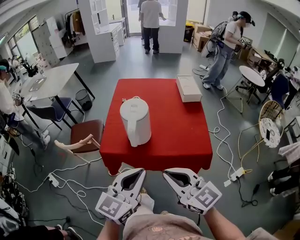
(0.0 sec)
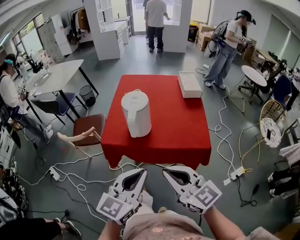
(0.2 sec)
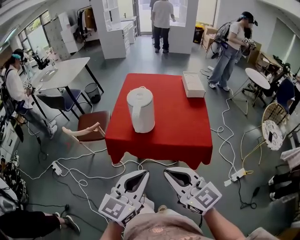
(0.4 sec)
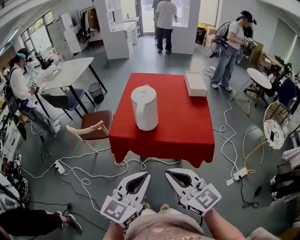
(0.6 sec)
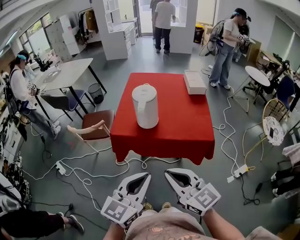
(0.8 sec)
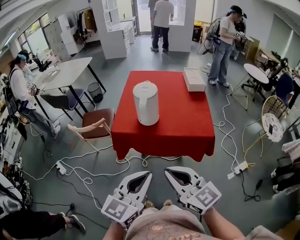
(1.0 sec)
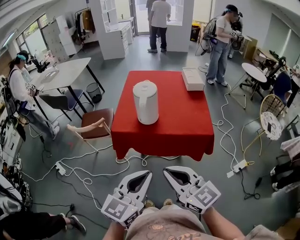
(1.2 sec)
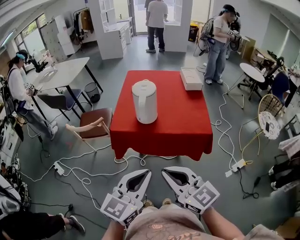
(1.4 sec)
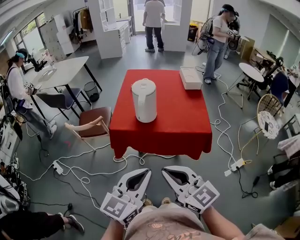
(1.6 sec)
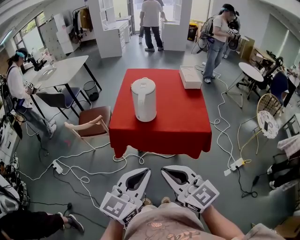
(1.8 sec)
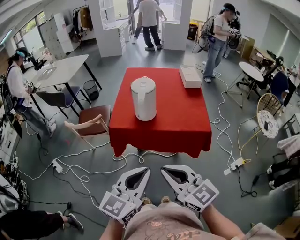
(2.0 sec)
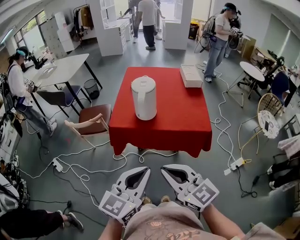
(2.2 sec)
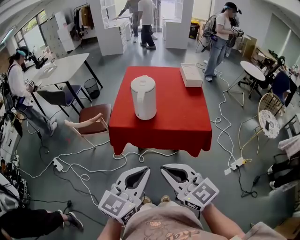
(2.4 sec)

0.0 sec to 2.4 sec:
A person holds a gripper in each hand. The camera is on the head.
0.0 sec to 1.2 sec: Both grippers travel together backward, approximately 15 cm.
1.2 sec to 2.4 sec: There are only small adjustments of the grippers.

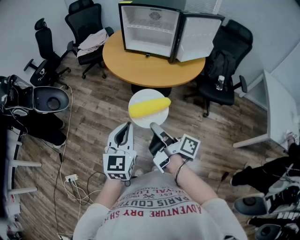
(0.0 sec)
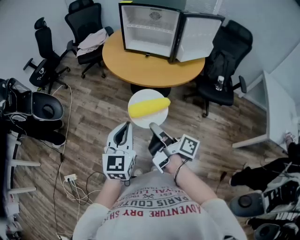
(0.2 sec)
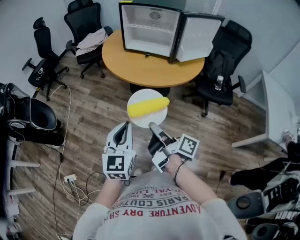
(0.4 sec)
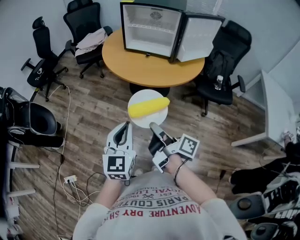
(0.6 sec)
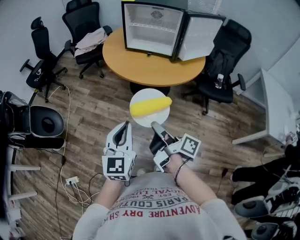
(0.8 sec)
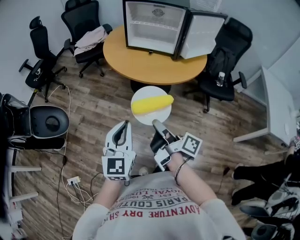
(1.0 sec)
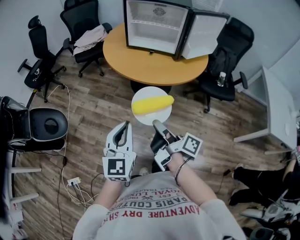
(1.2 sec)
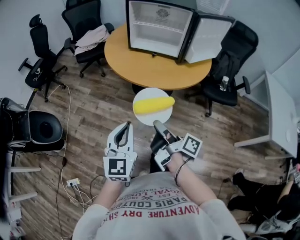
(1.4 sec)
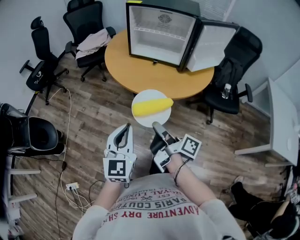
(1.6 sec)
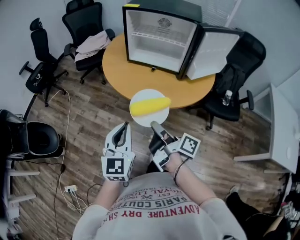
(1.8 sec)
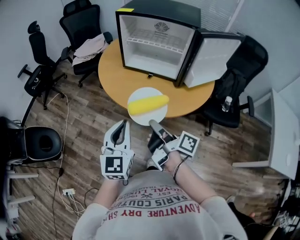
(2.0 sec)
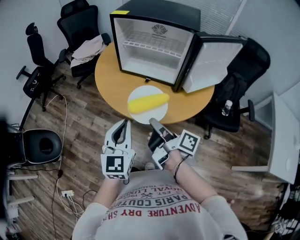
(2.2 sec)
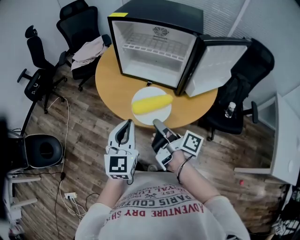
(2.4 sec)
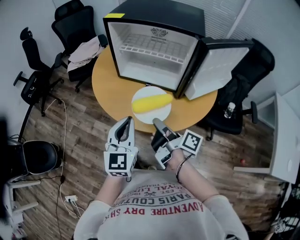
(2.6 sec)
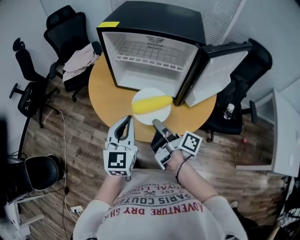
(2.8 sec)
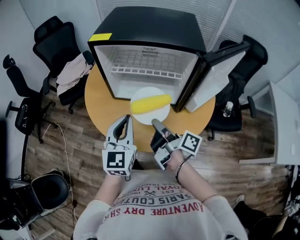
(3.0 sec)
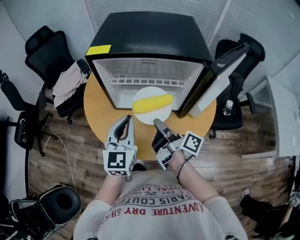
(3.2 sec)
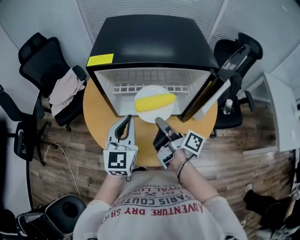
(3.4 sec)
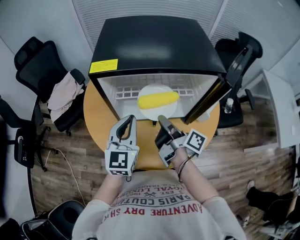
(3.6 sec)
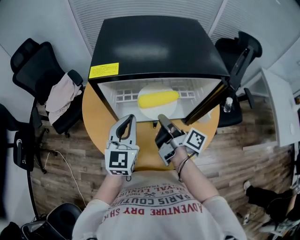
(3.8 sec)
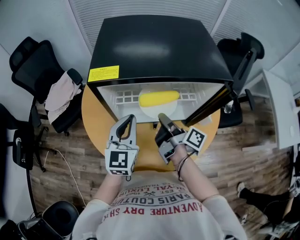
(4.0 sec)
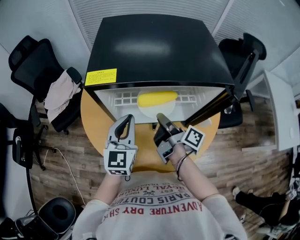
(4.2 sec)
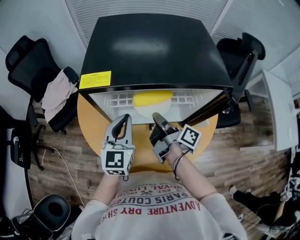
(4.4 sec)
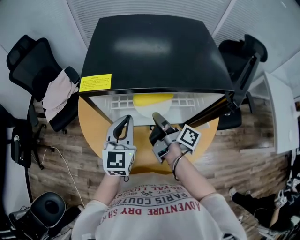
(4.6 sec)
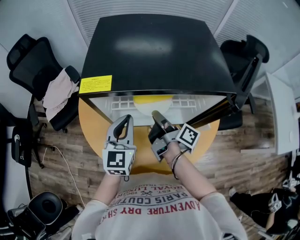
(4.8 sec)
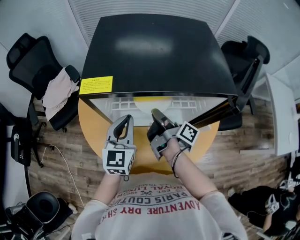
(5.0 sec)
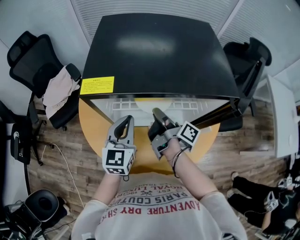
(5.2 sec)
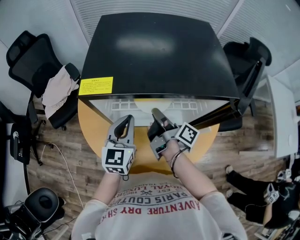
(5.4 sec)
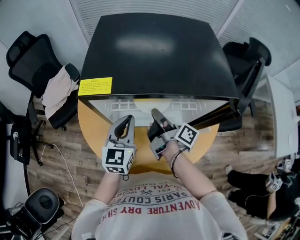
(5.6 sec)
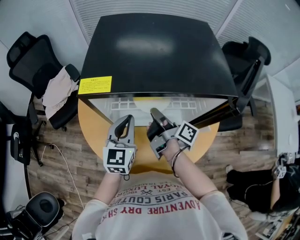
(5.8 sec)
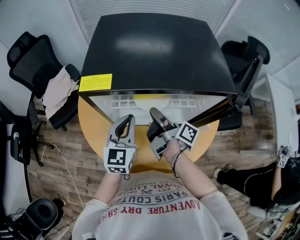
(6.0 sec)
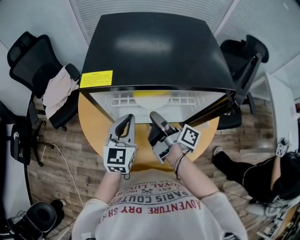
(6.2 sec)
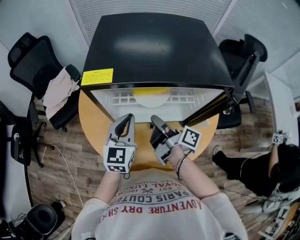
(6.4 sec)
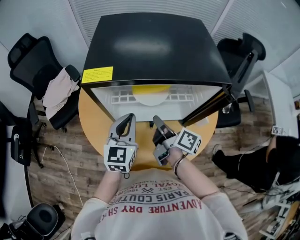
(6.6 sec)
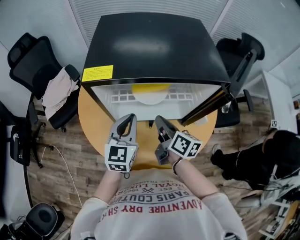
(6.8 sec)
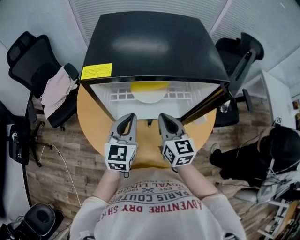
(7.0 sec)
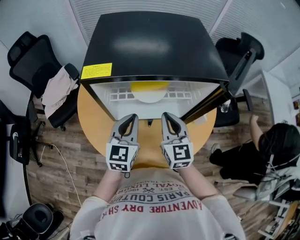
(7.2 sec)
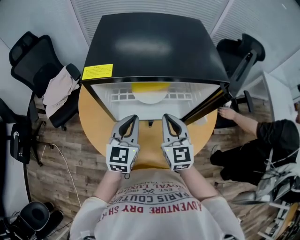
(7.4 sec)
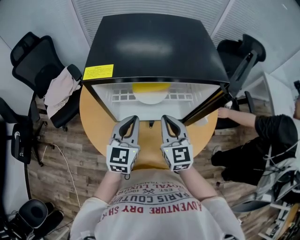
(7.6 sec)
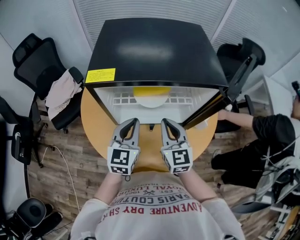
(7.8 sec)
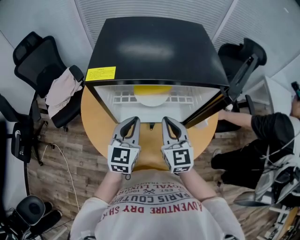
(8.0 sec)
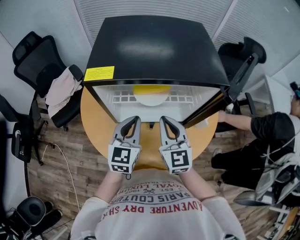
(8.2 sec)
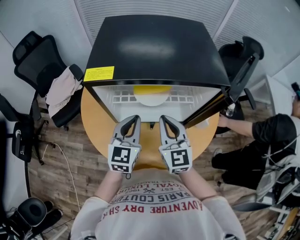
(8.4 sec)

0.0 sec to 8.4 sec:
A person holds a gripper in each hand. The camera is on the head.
0.0 sec to 1.4 sec: The left gripper ends up approximately 10 cm from where it was.
1.4 sec to 2.8 sec: The left gripper moves about 35 cm.
2.8 sec to 4.2 sec: The left gripper changes place by roughly 25 cm.

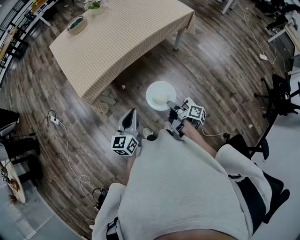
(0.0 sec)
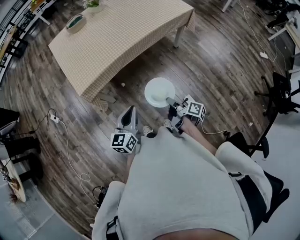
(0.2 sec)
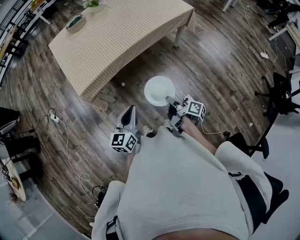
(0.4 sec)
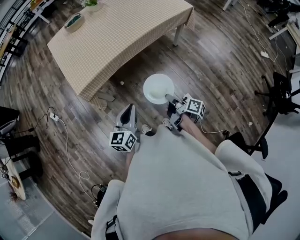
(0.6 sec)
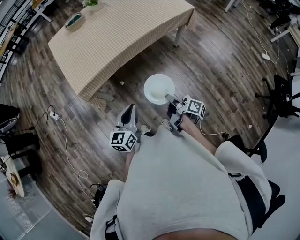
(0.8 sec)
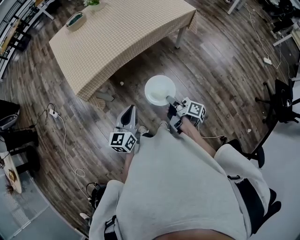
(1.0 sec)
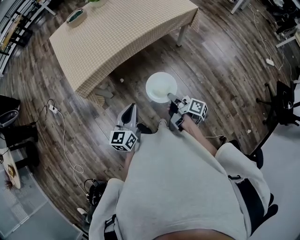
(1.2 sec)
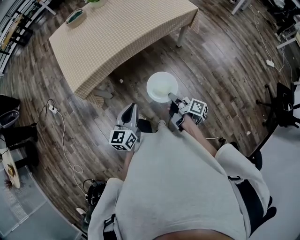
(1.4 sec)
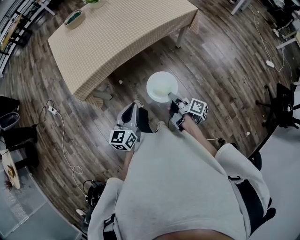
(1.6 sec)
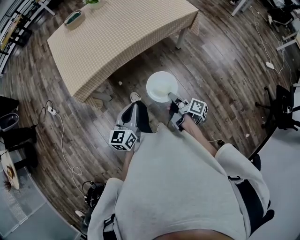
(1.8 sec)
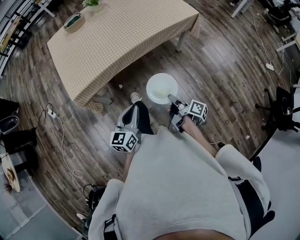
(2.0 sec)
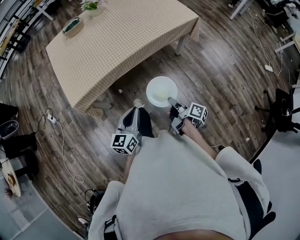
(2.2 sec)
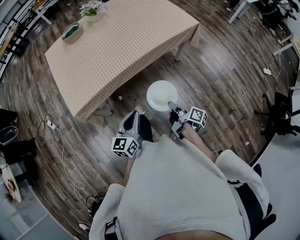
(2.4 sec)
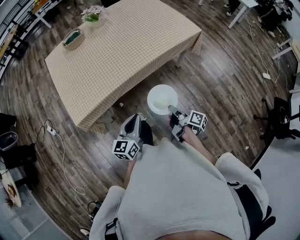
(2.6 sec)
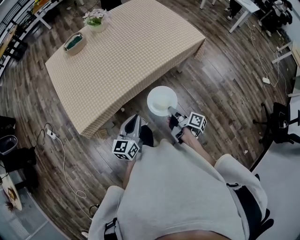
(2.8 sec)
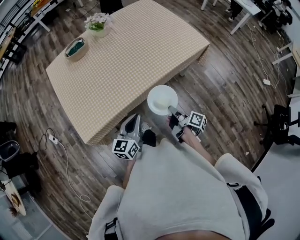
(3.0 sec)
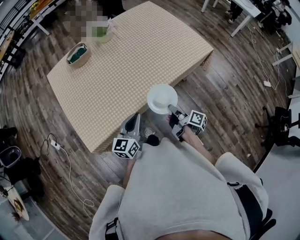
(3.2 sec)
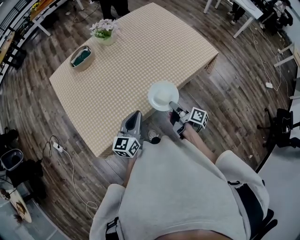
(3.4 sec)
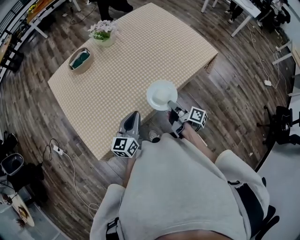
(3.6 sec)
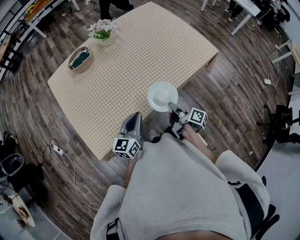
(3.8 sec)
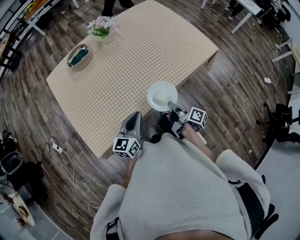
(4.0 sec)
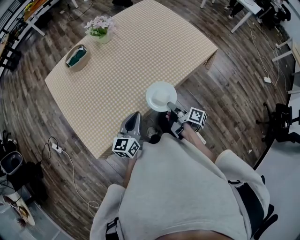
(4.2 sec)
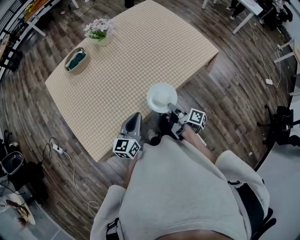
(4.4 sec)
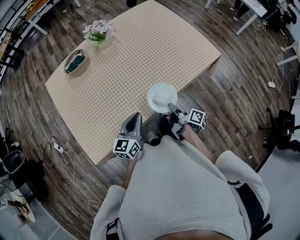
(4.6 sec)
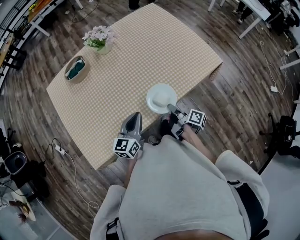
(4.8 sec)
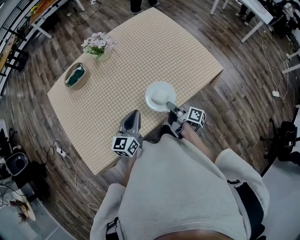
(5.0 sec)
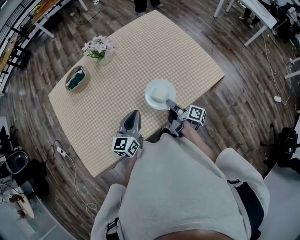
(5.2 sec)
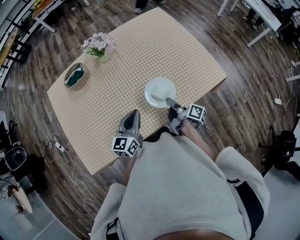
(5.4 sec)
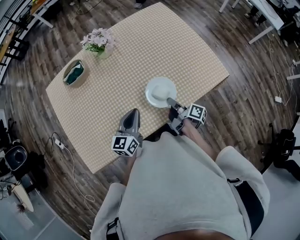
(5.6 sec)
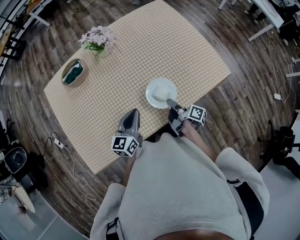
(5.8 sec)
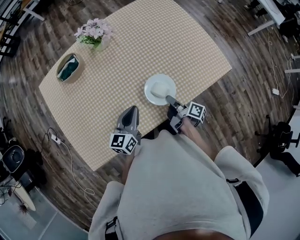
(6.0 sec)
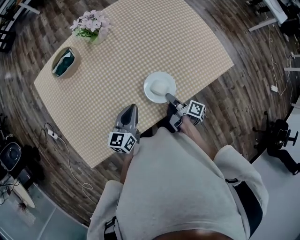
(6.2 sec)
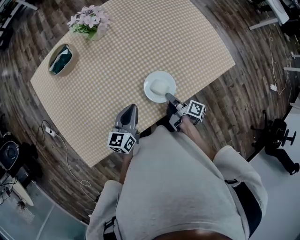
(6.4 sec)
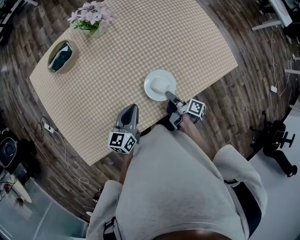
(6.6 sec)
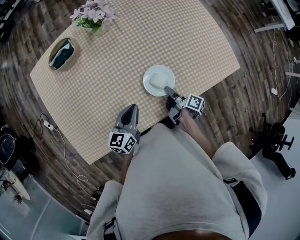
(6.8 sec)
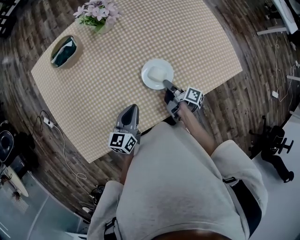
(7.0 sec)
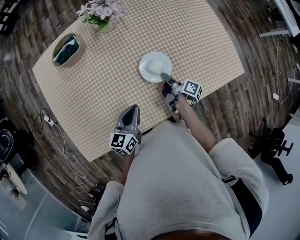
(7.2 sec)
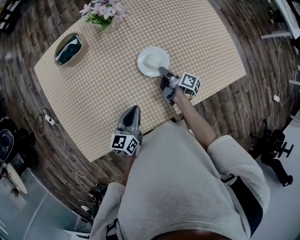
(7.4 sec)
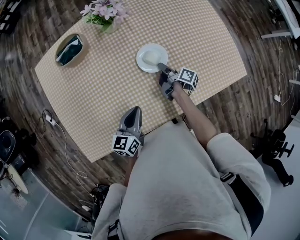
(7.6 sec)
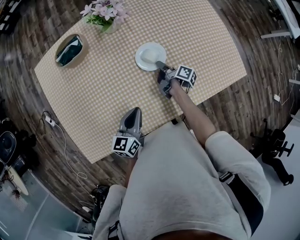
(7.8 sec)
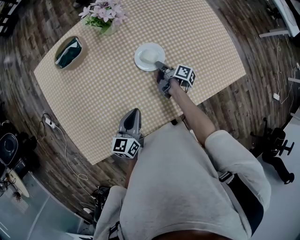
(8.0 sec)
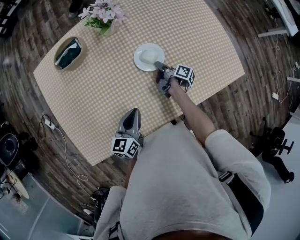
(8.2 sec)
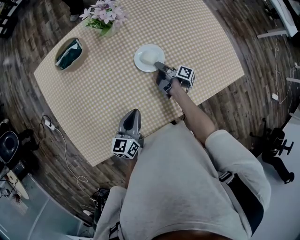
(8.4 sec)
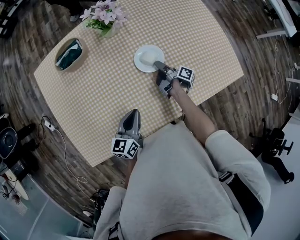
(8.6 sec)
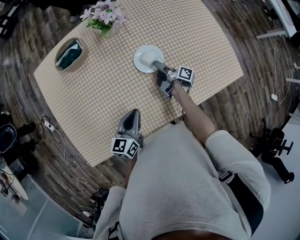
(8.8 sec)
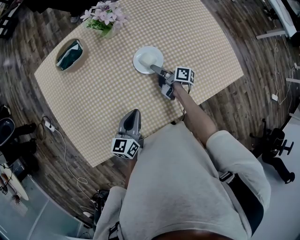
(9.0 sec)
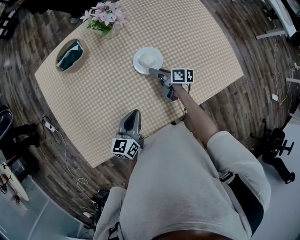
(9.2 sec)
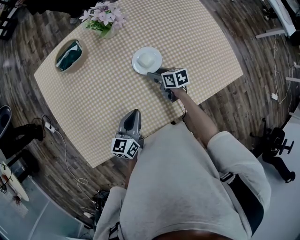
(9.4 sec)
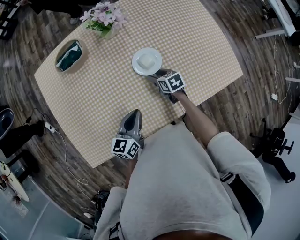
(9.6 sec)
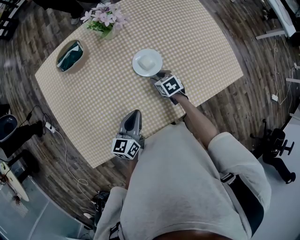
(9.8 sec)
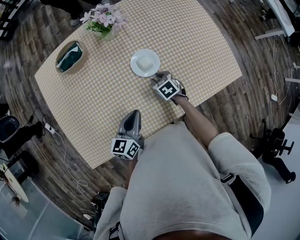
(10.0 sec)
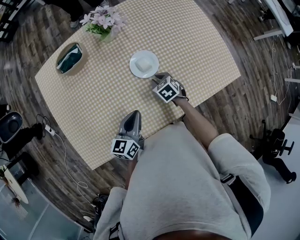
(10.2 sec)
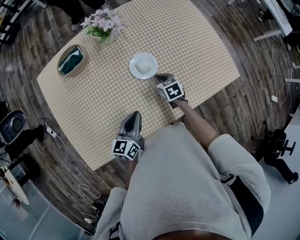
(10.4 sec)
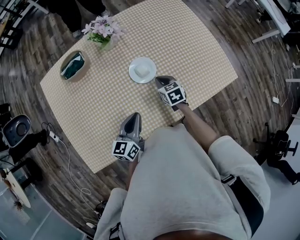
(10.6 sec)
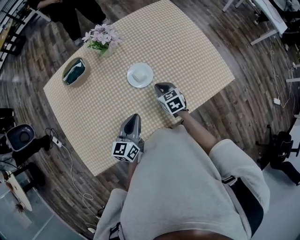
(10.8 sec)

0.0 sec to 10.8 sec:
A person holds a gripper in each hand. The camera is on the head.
0.0 sec to 1.6 sec: The left gripper shifts by about 10 cm.
1.6 sec to 3.0 sec: The left gripper ends up approximately 30 cm from where it was.
3.0 sec to 4.6 sec: The left gripper moves some 15 cm.
4.6 sec to 6.2 sec: The left gripper changes place by approximately 15 cm.
6.2 sec to 7.8 sec: The left gripper moves roughly 5 cm.
9.2 sec to 10.8 sec: The left gripper moves about 5 cm.

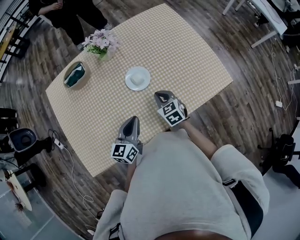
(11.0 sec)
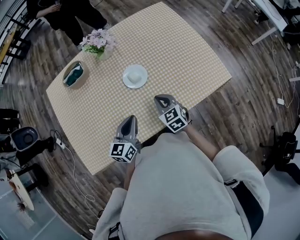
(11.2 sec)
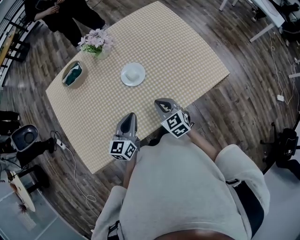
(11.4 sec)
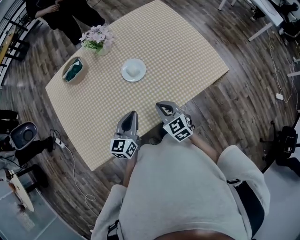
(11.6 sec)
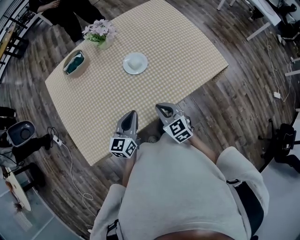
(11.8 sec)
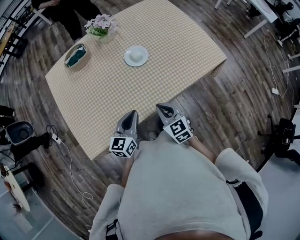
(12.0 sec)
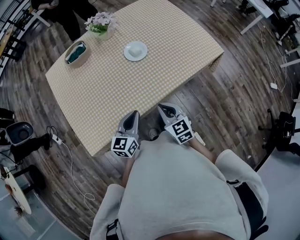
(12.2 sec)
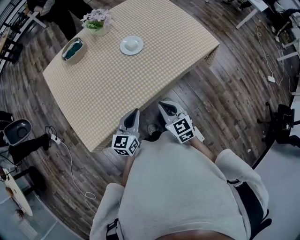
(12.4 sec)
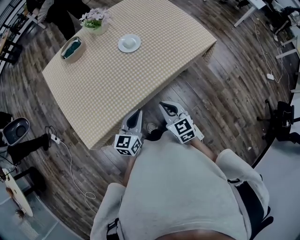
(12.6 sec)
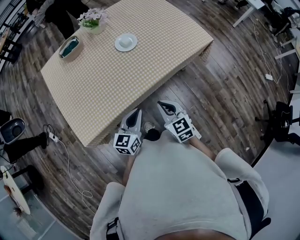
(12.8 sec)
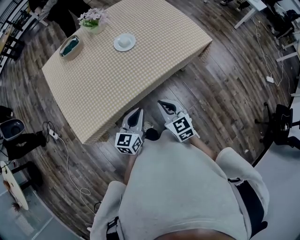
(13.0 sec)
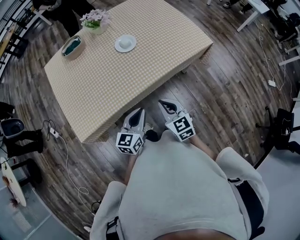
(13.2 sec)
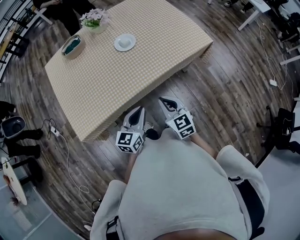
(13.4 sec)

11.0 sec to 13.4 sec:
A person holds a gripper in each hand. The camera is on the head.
11.0 sec to 12.2 sec: The left gripper changes place by roughly 20 cm.
12.2 sec to 13.4 sec: The left gripper changes place by approximately 15 cm.
